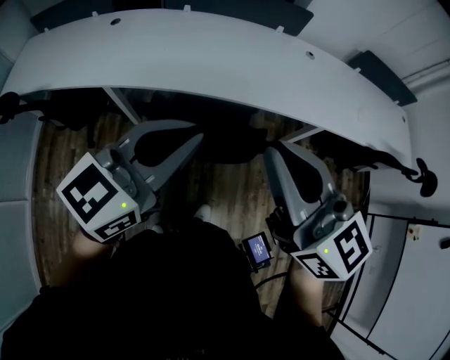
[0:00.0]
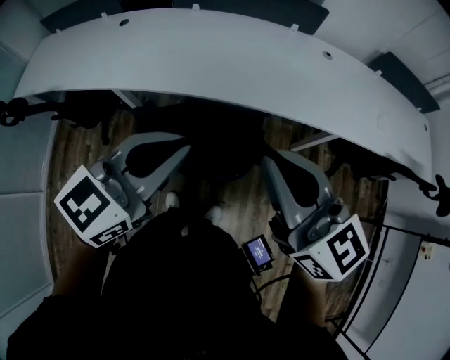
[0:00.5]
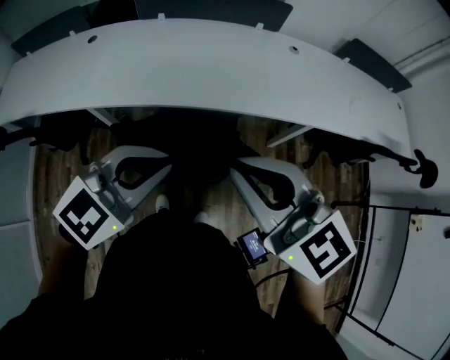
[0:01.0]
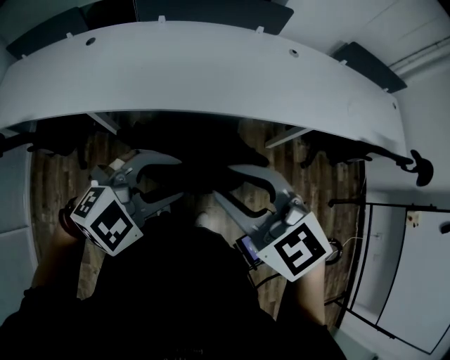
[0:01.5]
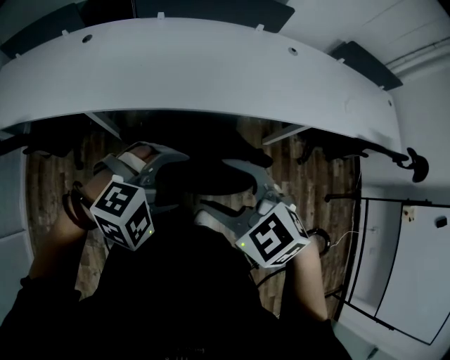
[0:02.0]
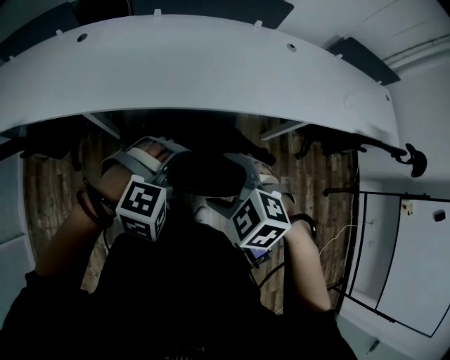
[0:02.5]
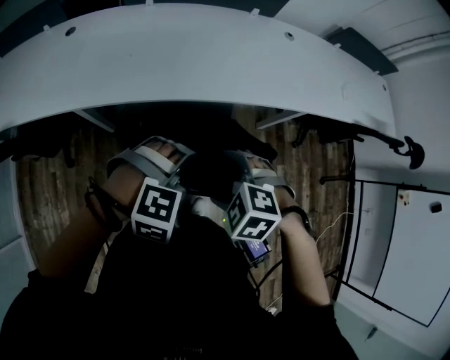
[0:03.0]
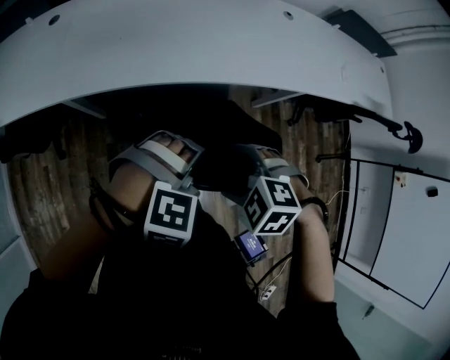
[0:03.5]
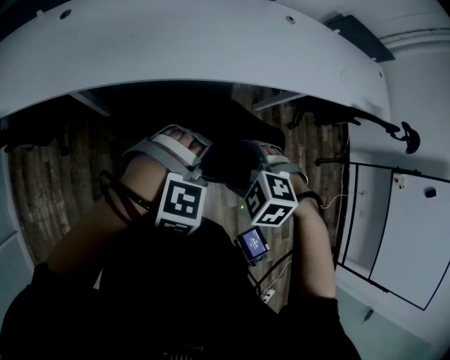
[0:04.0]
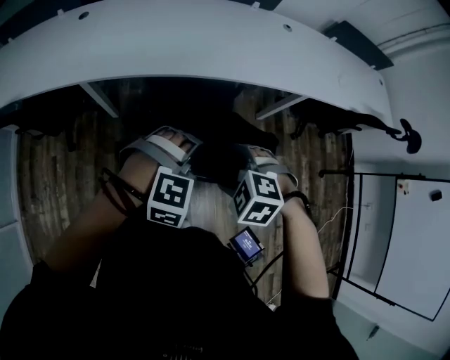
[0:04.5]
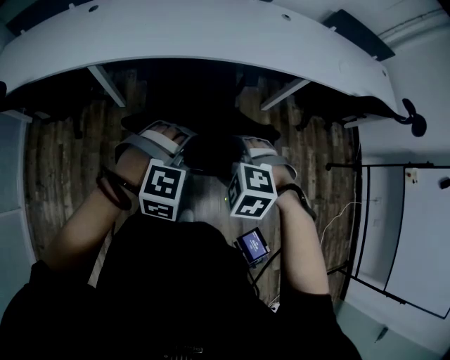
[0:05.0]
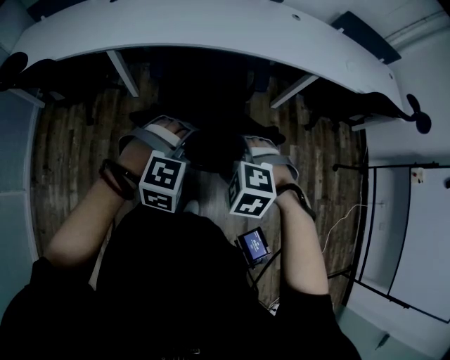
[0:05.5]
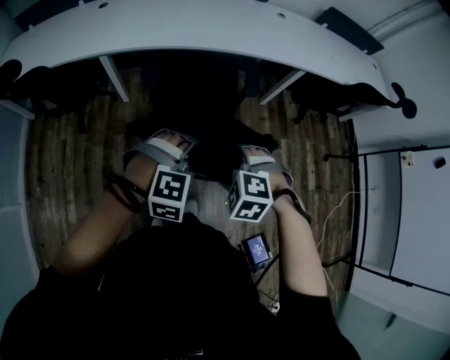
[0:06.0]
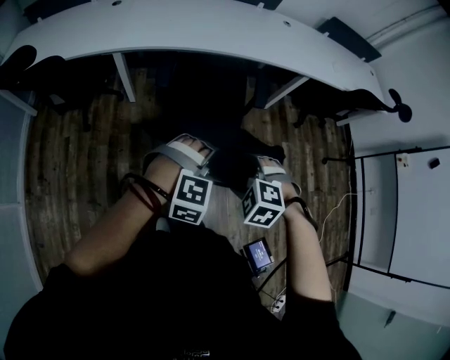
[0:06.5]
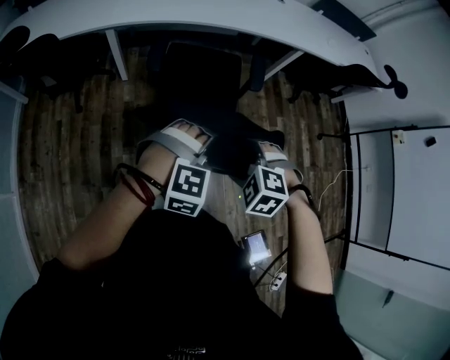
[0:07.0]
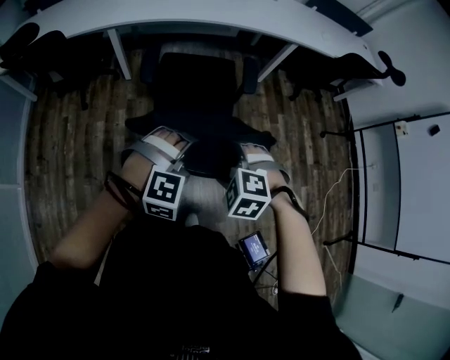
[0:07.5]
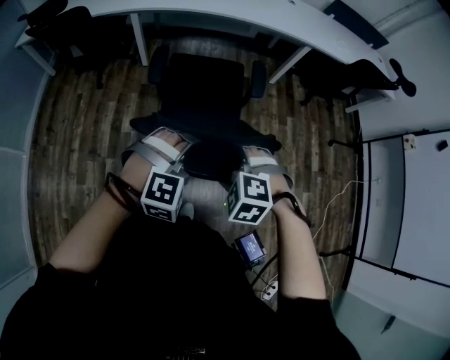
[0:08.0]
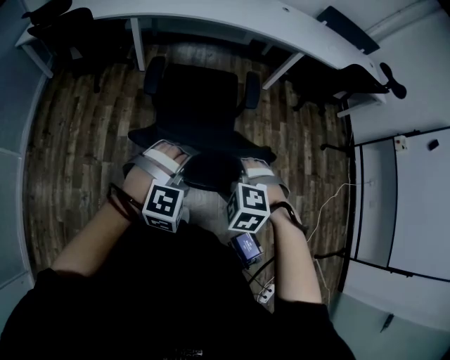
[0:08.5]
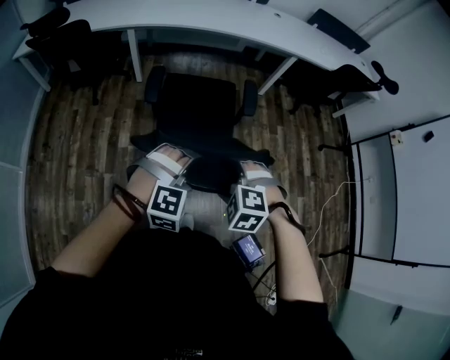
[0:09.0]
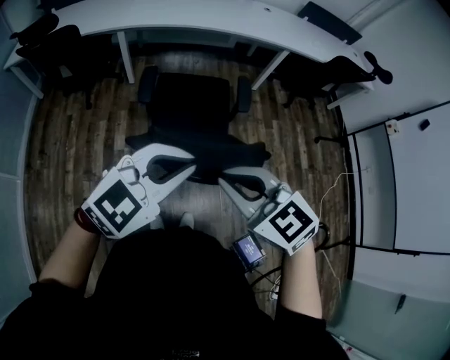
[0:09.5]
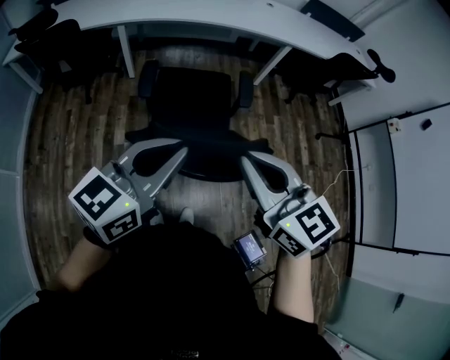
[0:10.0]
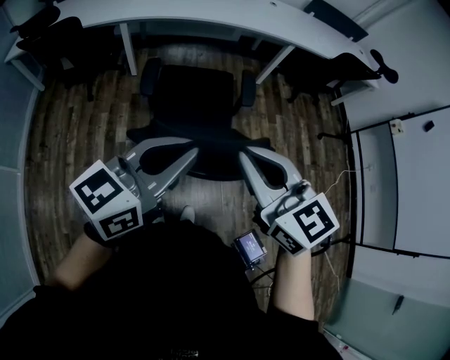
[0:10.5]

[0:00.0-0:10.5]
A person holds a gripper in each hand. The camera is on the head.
0:00.0 to 0:02.0: The right gripper heads downward and to the left, covering roughly 15 cm, tilts its fingers approximately 40 degrees downward, and opens its fingers. The left gripper is displaced downward by approximately 15 cm, angles its fingers downward, by some 40 degrees, and opens its fingers.
0:02.0 to 0:04.0: The left gripper goes some 10 cm downward, and rotates roughly 20 degrees. The right gripper heads downward, covering roughly 15 cm, and angles its fingers downward, by about 30 degrees.
0:04.0 to 0:06.5: The two grippers go roughly 35 cm backward.
0:06.5 to 0:08.5: Both grippers move backward, some 30 cm.
0:08.5 to 0:10.5: Both grippers travel together upward, some 20 cm. The right gripper tilts its fingers about 50 degrees upward, and closes its fingers. Meanwhile the left gripper rotates around the line of its fingers by about 70 degrees, counterclockwise from behind, and closes.

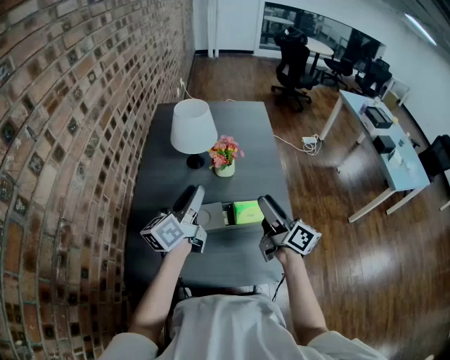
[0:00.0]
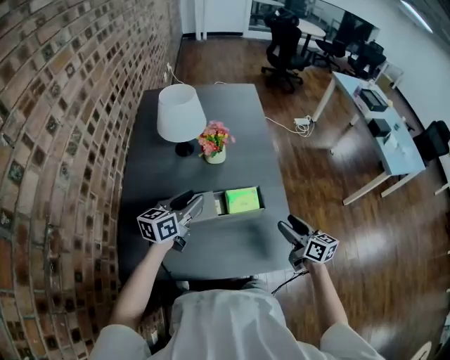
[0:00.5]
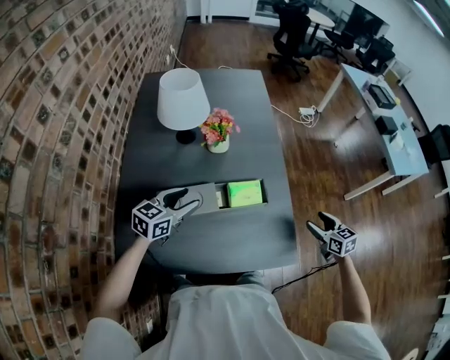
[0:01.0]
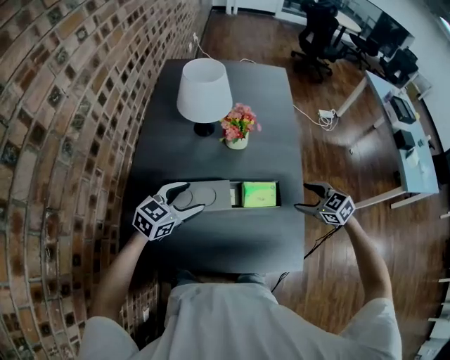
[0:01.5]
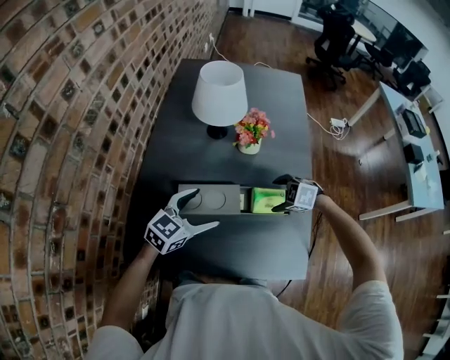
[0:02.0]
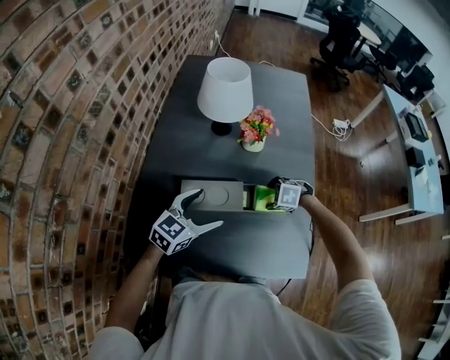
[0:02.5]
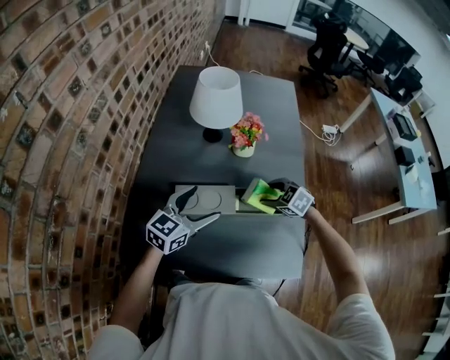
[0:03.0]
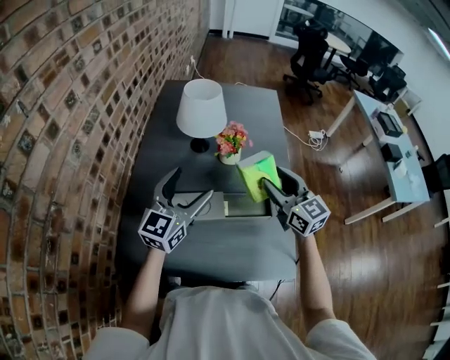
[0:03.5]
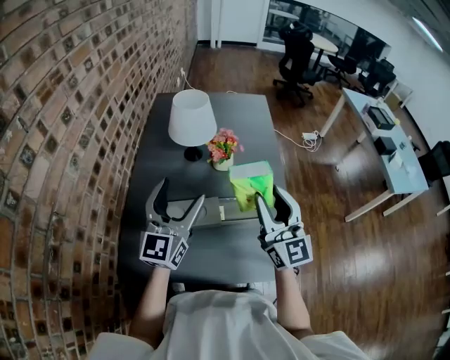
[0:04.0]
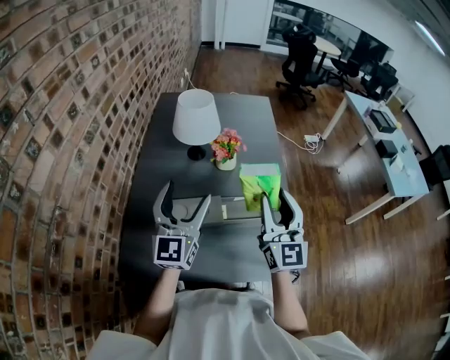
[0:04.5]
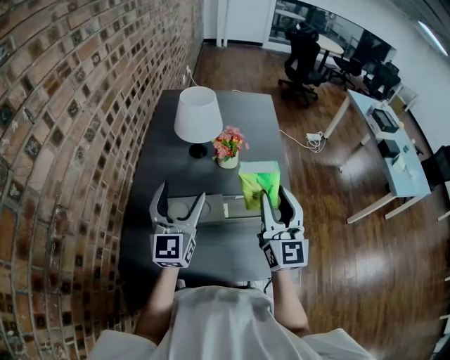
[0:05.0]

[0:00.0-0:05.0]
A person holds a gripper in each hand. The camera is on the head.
0:00.0 to 0:02.5: The left gripper goes some 15 cm downward, rotates about 50 degrees, and opens, while the right gripper goes roughly 30 cm downward, and points its fingers roughly 80 degrees further downward.
0:02.5 to 0:05.0: The left gripper goes roughly 20 cm upward, and angles its fingers upward, by roughly 30 degrees; the right gripper heads upward, covering some 40 cm, angles its fingers upward, by roughly 90 degrees, and closes up.

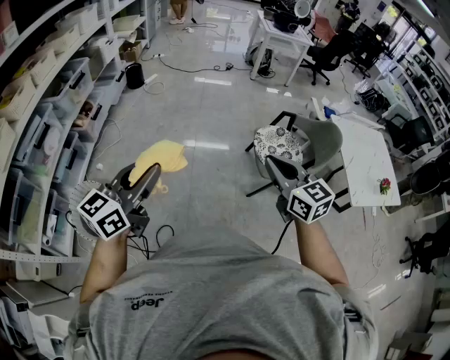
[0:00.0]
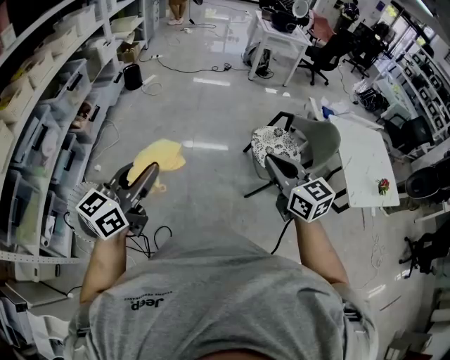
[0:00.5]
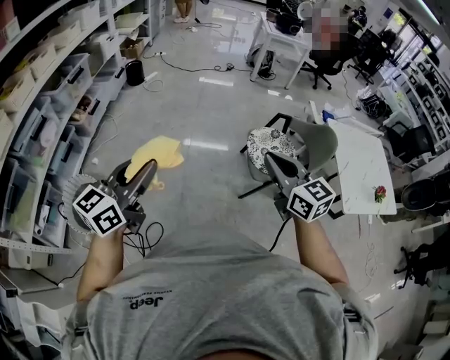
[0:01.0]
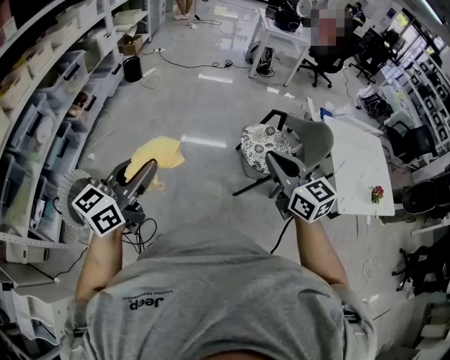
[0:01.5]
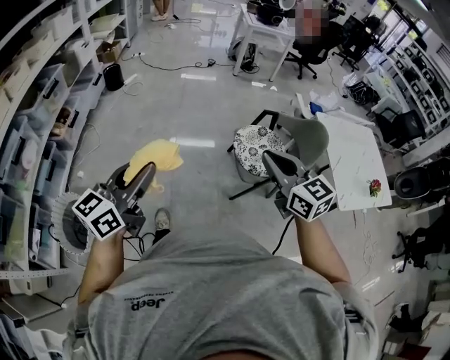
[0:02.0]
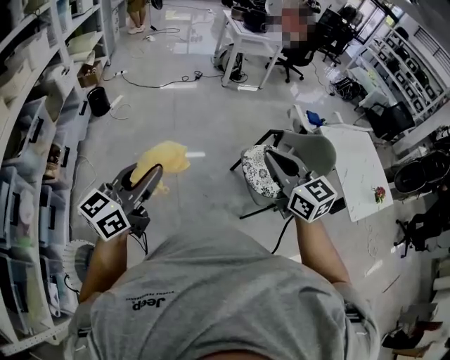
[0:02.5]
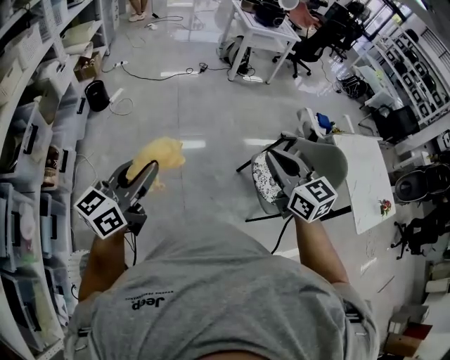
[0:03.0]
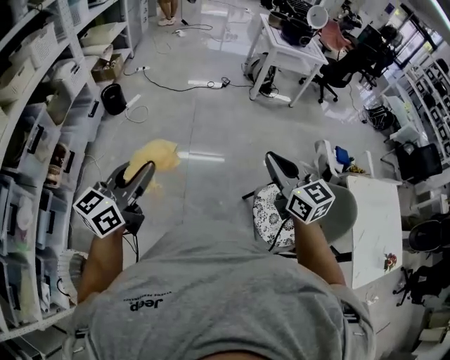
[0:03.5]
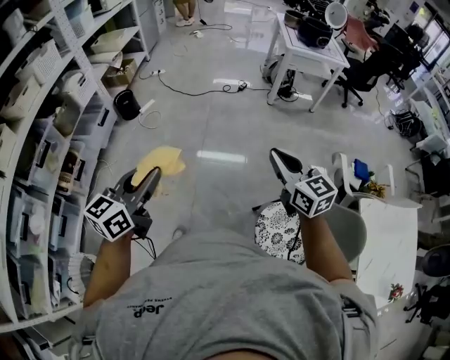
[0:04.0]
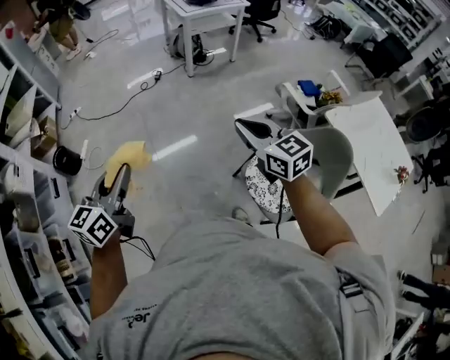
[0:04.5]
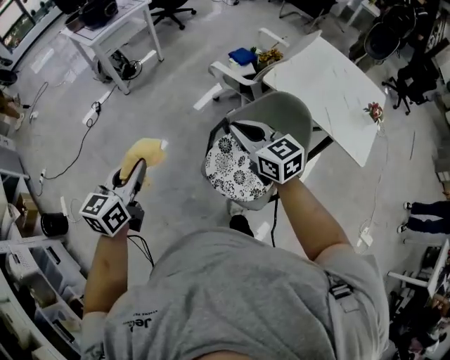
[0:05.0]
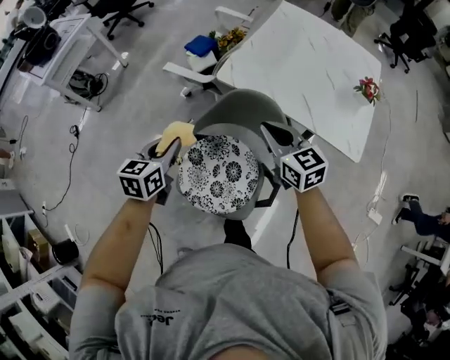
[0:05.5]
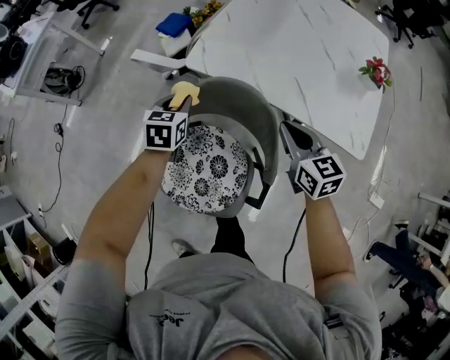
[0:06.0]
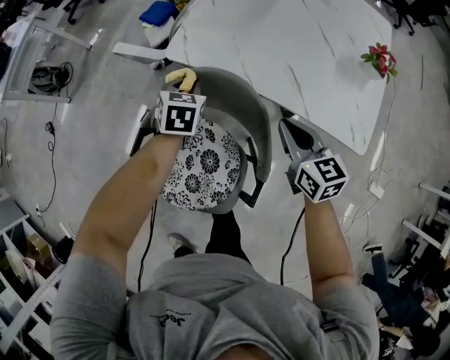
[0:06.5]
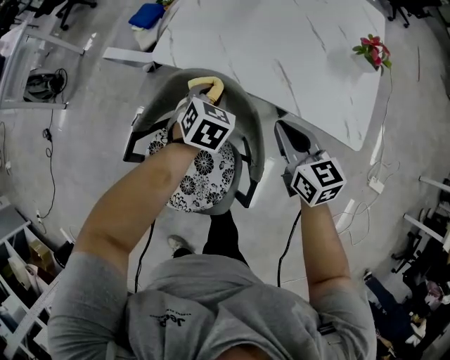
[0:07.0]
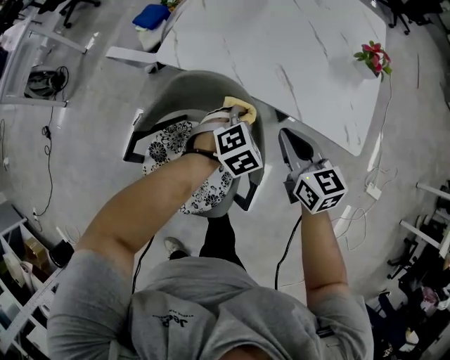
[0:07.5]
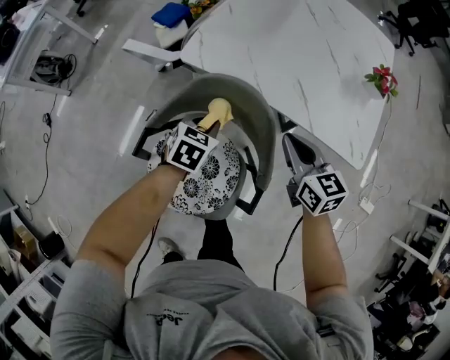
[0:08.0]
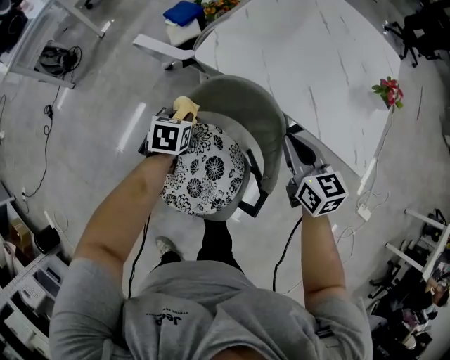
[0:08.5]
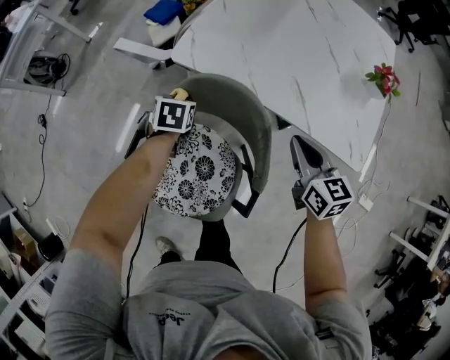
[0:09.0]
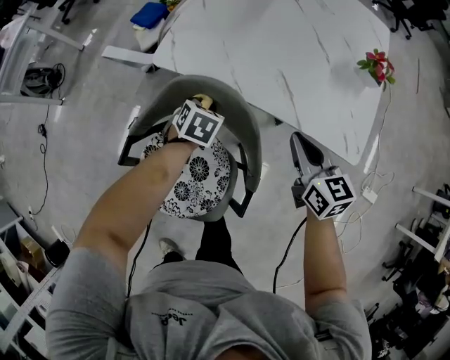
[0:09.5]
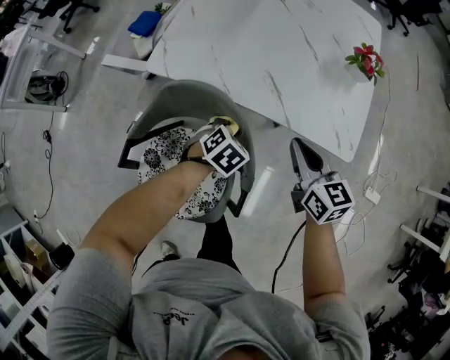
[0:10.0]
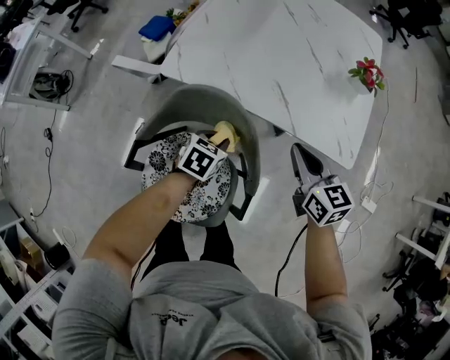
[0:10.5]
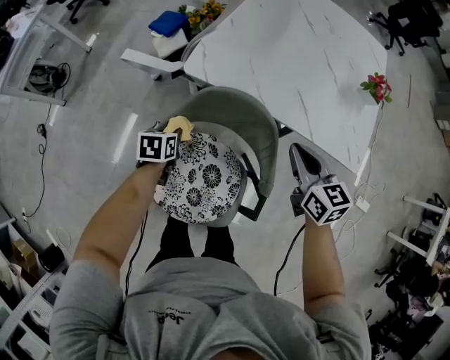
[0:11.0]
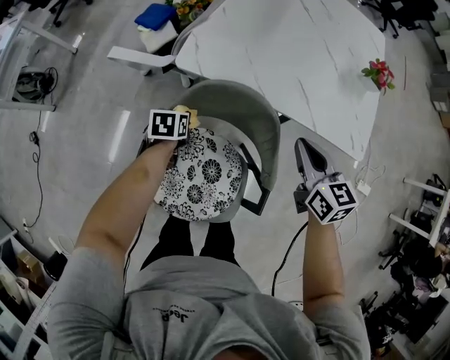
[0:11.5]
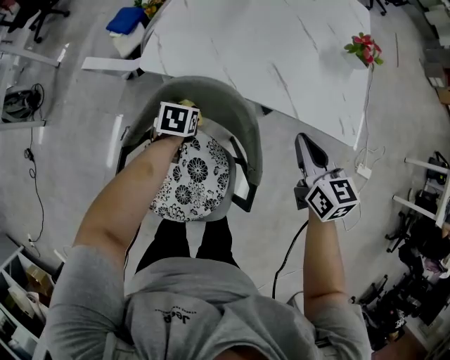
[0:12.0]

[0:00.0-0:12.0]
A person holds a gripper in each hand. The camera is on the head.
0:00.0 to 0:02.0: The left gripper shifts approximately 10 cm forward and to the right, while the right gripper goes some 10 cm to the right and forward.
0:02.0 to 0:04.0: The two grippers travel together, forward, approximately 60 cm.
0:04.0 to 0:06.0: The two grippers travel together, some 70 cm. The left gripper points its fingers roughly 40 degrees further downward; the right gripper swivels roughly 80 degrees.
0:06.0 to 0:08.0: The left gripper shifts approximately 15 cm to the right, backward and downward.
0:08.0 to 0:10.0: The two grippers go some 15 cm to the right. The left gripper rotates some 20 degrees.
0:10.0 to 0:12.0: The right gripper goes to the left and returns, approximately 10 cm each way, while the left gripper goes about 15 cm to the left, and changes its angle by approximately 30 degrees.
